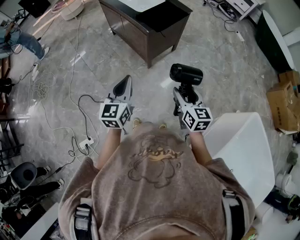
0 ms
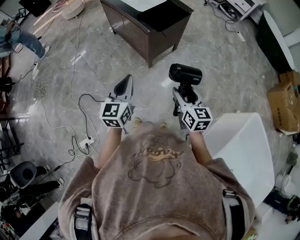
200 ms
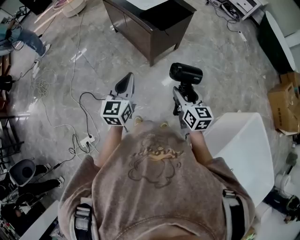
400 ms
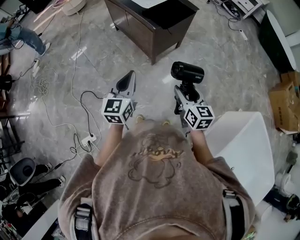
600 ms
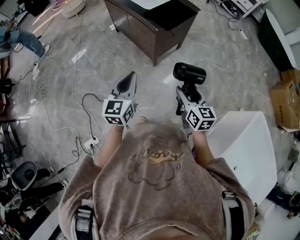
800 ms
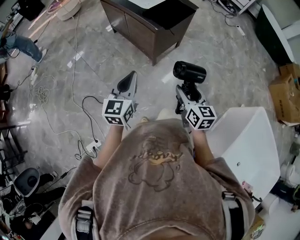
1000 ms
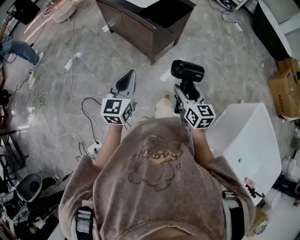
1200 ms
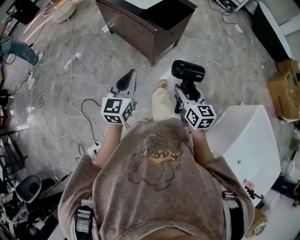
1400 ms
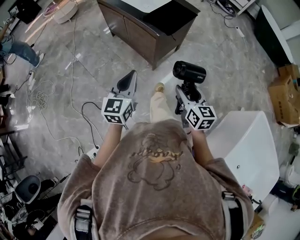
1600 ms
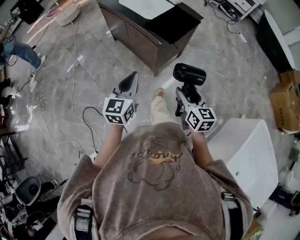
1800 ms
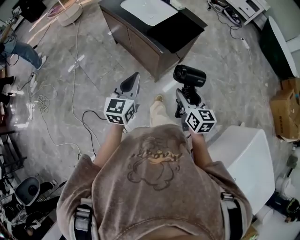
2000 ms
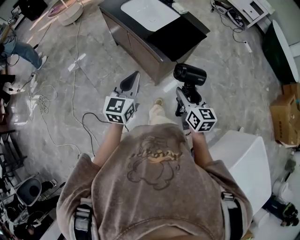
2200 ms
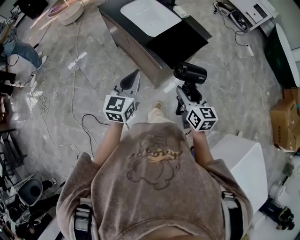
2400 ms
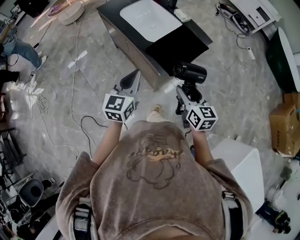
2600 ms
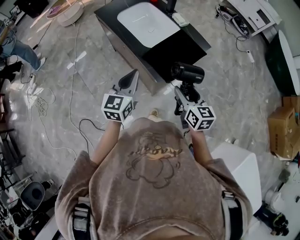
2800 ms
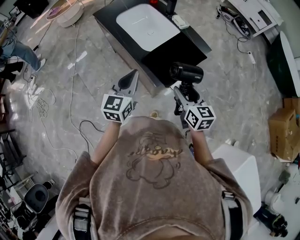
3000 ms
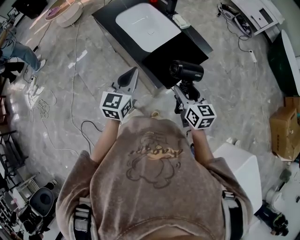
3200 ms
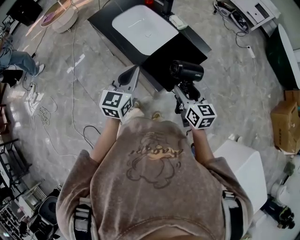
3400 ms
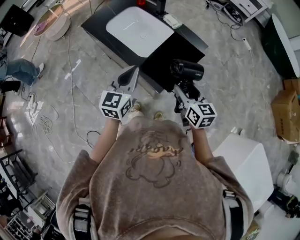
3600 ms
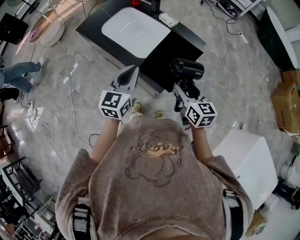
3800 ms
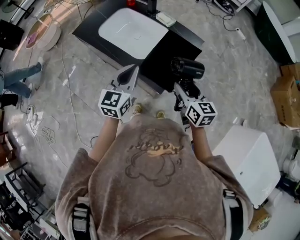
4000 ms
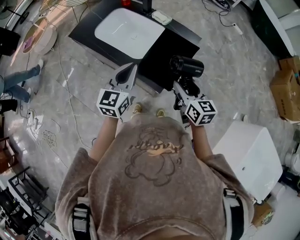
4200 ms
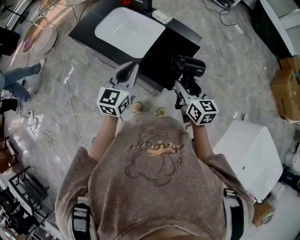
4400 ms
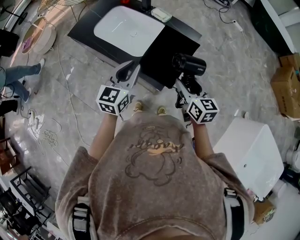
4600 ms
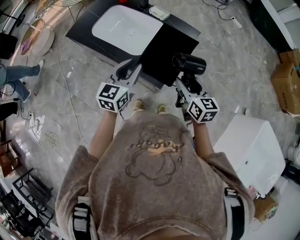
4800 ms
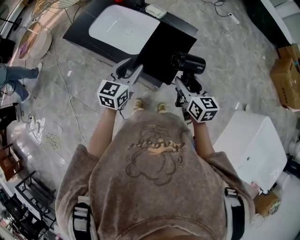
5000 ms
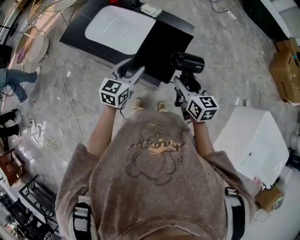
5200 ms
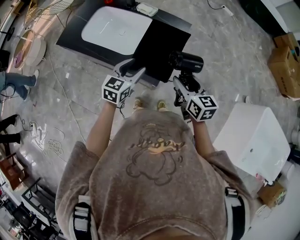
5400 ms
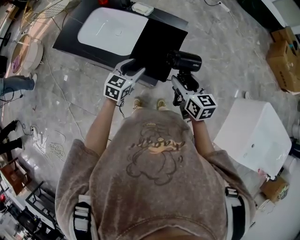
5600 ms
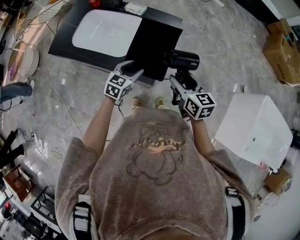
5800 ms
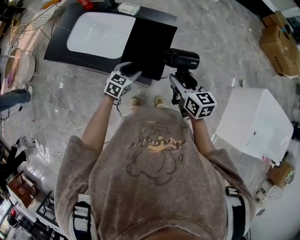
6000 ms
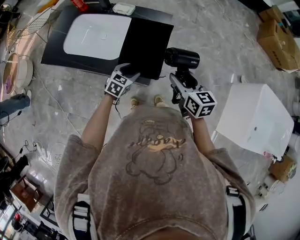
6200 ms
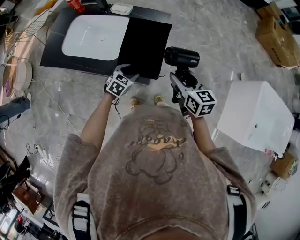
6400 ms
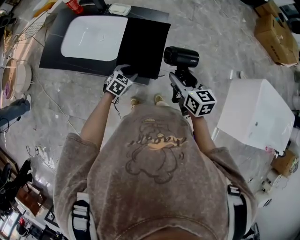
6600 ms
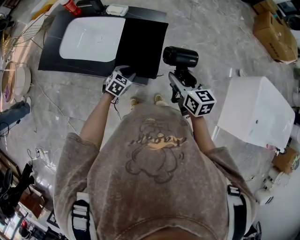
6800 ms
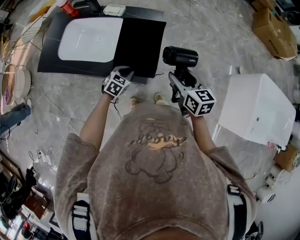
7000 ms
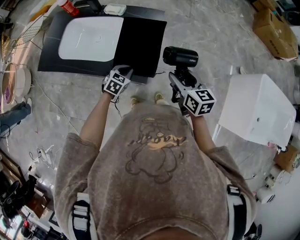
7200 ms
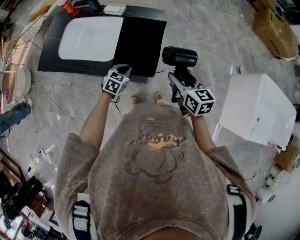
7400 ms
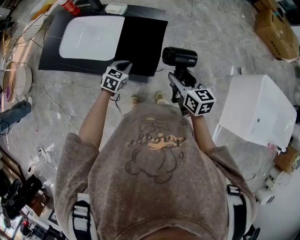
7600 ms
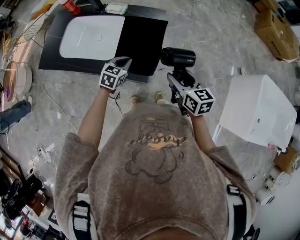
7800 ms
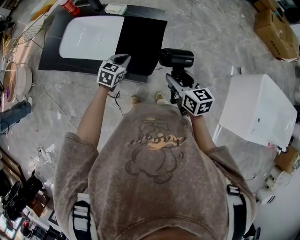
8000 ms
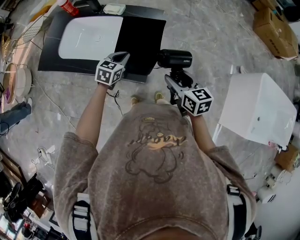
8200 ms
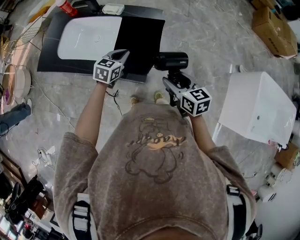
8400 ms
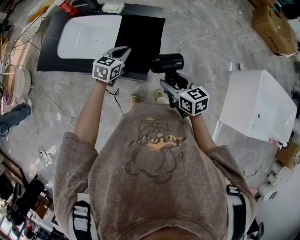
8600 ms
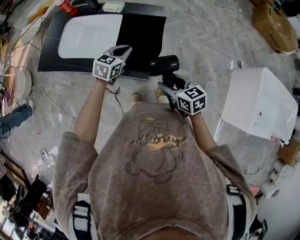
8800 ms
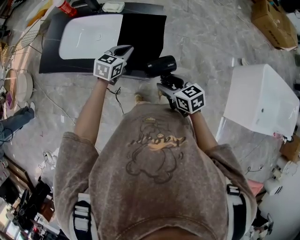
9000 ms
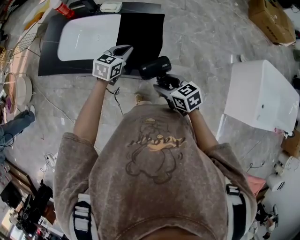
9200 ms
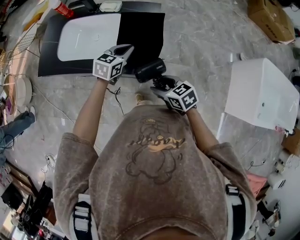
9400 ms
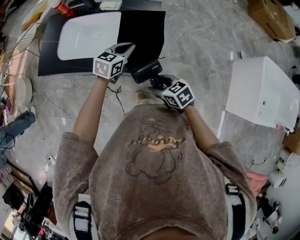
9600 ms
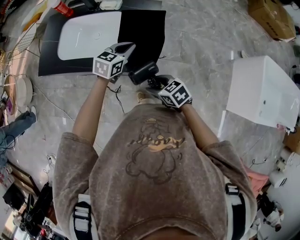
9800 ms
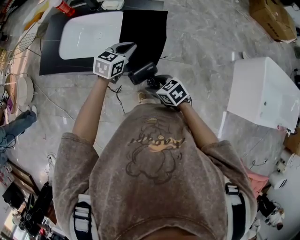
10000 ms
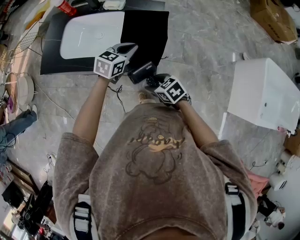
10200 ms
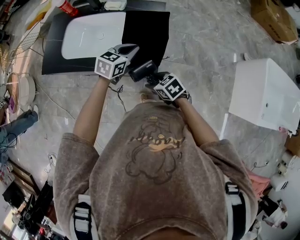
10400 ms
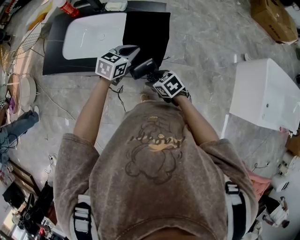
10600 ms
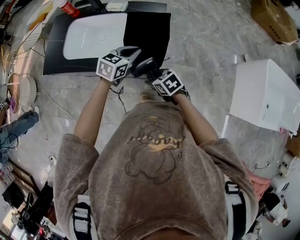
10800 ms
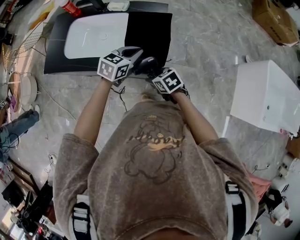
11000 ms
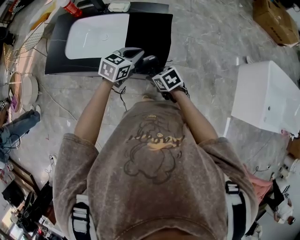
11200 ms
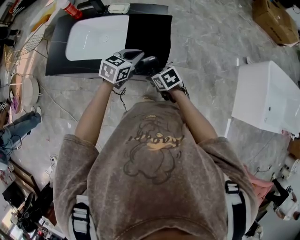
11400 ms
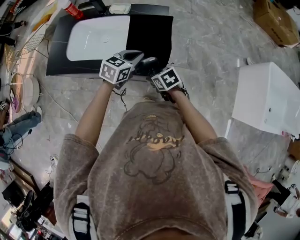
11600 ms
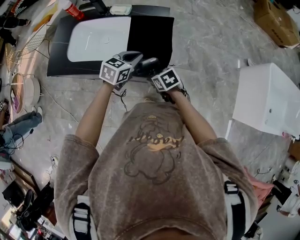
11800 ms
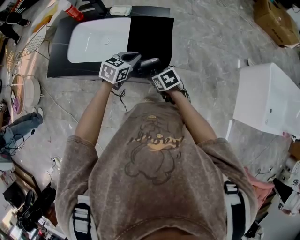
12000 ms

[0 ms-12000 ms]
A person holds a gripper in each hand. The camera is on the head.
0 ms to 1600 ms: The left gripper travels forward and to the left by approximately 15 cm. Meanwhile the right gripper heads to the left and forward, covering some 15 cm.
1600 ms to 3000 ms: Both grippers travel together forward, about 40 cm.
3000 ms to 4400 ms: The left gripper travels forward by some 10 cm. Meanwhile the right gripper heads forward, covering roughly 5 cm.
4400 ms to 6000 ms: The left gripper shifts some 20 cm downward, rotates about 40 degrees, and opens its fingers. The right gripper changes place by approximately 5 cm.
6000 ms to 7600 ms: The left gripper closes.
7600 ms to 9000 ms: The left gripper goes about 10 cm upward. Meanwhile the right gripper travels to the left and backward by approximately 10 cm.
9000 ms to 10400 ms: The right gripper shifts roughly 15 cm to the left and downward.
10400 ms to 12000 ms: The right gripper shifts some 5 cm forward.

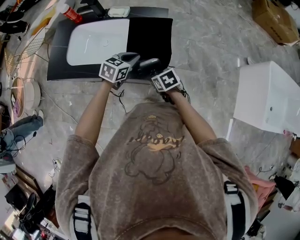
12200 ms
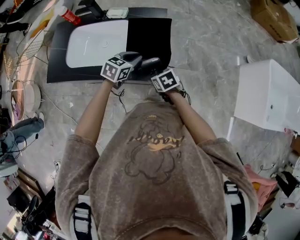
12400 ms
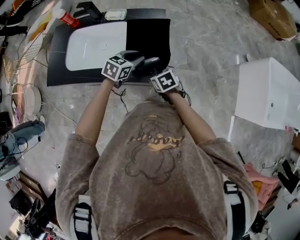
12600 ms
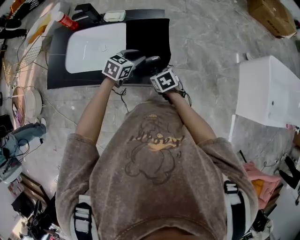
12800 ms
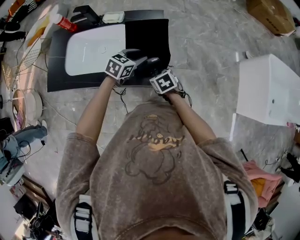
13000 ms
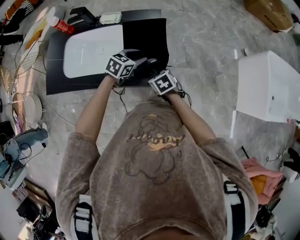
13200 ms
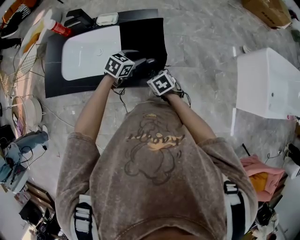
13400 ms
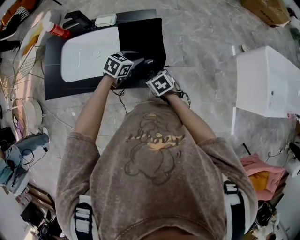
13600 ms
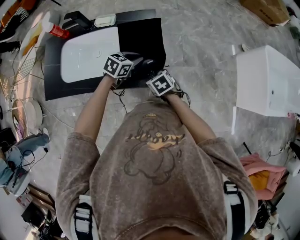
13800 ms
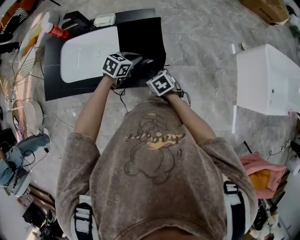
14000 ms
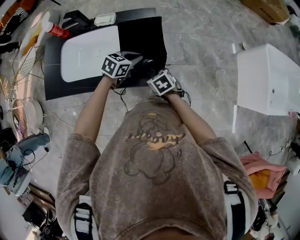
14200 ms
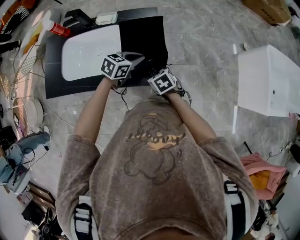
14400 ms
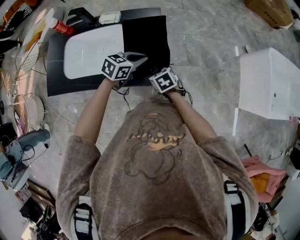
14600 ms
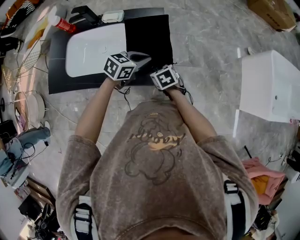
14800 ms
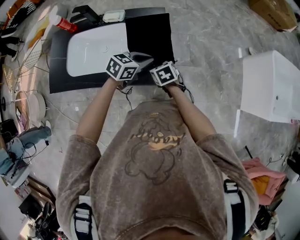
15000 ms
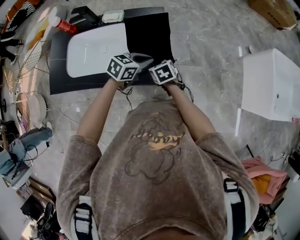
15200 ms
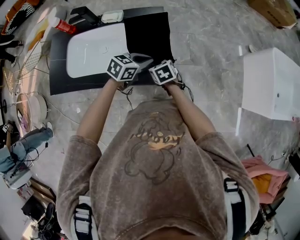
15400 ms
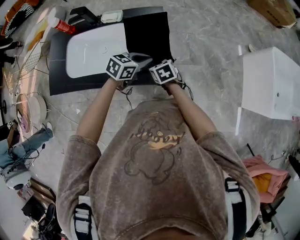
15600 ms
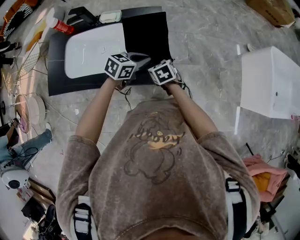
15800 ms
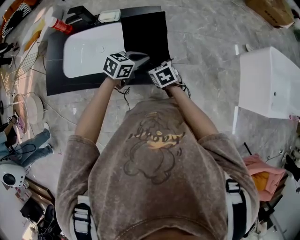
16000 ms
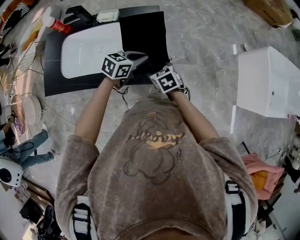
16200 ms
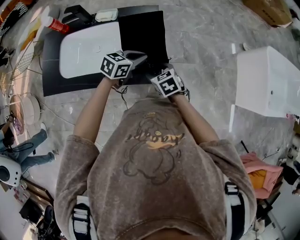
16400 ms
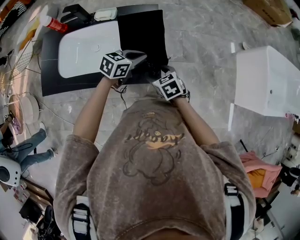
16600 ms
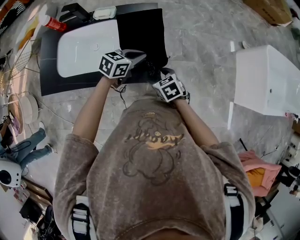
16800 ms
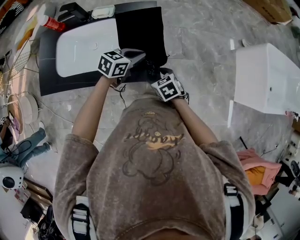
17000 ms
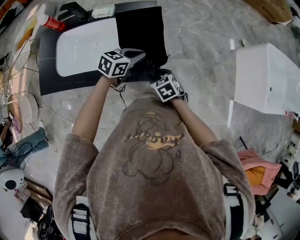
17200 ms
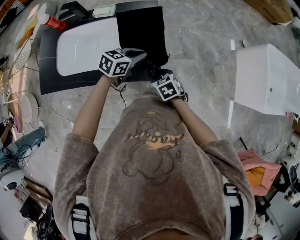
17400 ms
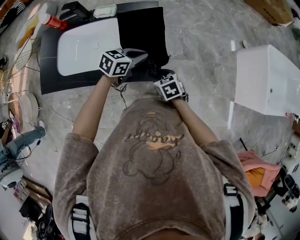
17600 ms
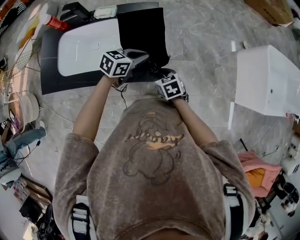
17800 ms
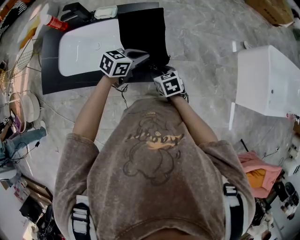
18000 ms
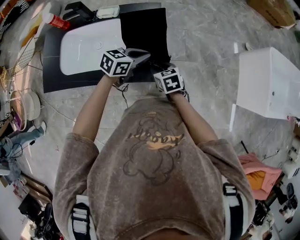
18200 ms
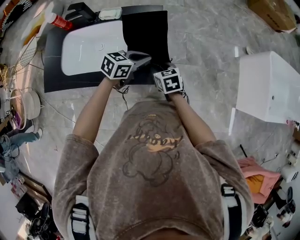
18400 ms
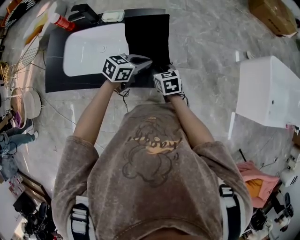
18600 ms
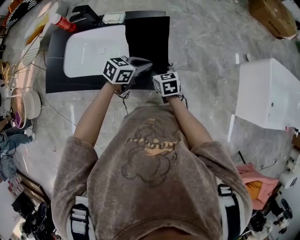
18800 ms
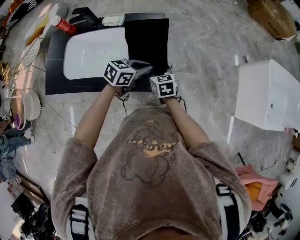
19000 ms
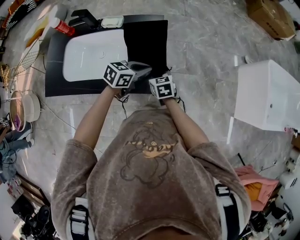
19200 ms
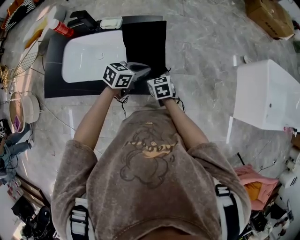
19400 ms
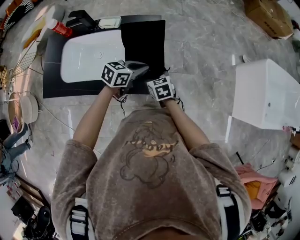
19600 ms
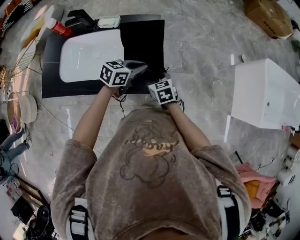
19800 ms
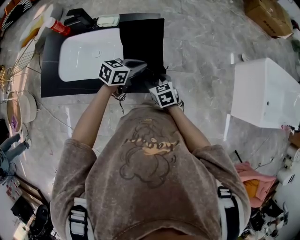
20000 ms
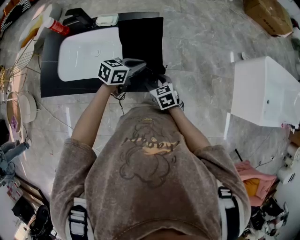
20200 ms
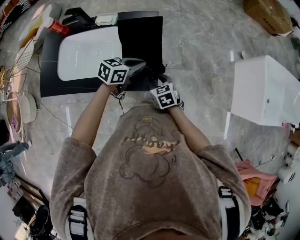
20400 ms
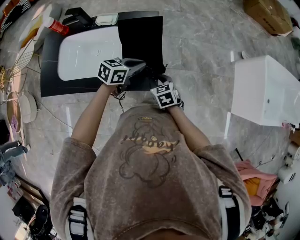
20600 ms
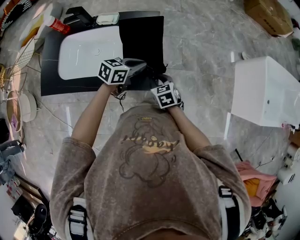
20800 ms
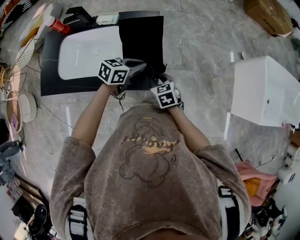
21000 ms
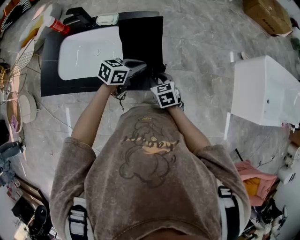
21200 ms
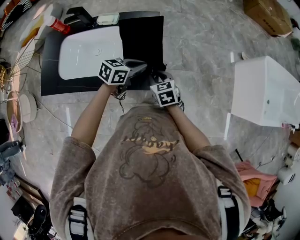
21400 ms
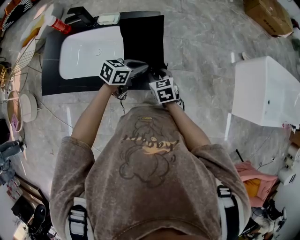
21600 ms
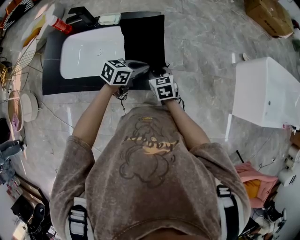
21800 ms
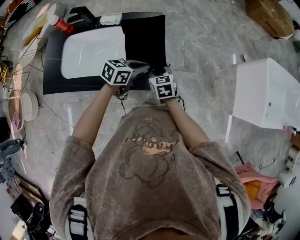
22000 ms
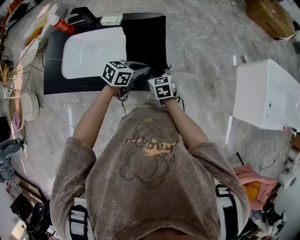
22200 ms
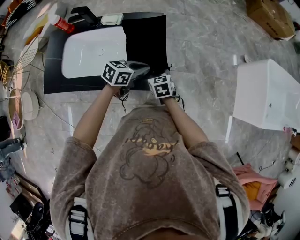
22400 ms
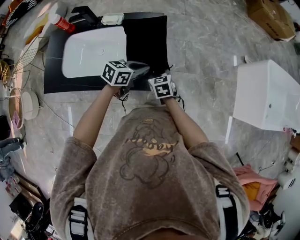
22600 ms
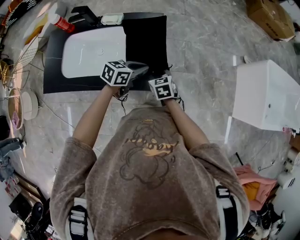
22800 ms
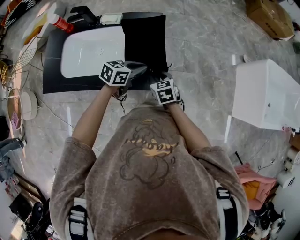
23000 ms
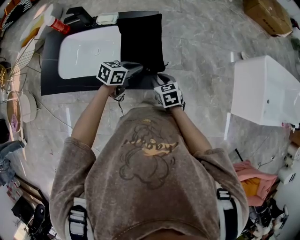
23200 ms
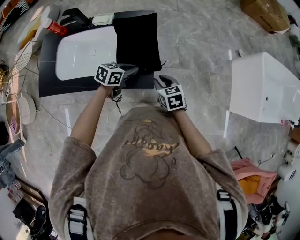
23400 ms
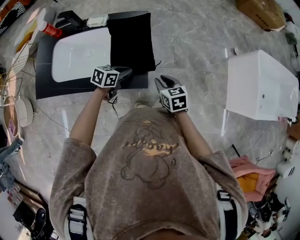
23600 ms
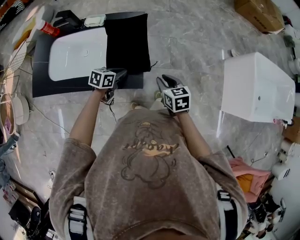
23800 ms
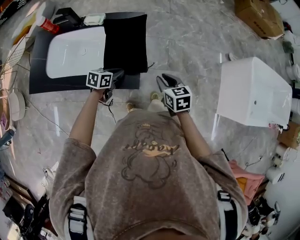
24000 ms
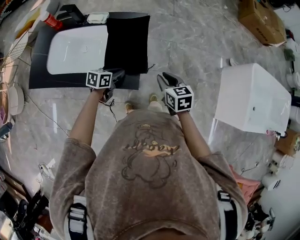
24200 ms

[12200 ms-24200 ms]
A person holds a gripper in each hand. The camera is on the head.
12200 ms to 13800 ms: The left gripper changes place by some 5 cm, and opens, then closes once more.
13800 ms to 15200 ms: The left gripper shifts by about 5 cm. Meanwhile the right gripper moves forward, approximately 5 cm.
15200 ms to 16600 ms: The right gripper ends up about 5 cm from where it was.
16600 ms to 18200 ms: The right gripper closes up.
18200 ms to 19800 ms: There are only small adjustments of the grippers.
19800 ms to 21200 ms: The right gripper closes up.
21200 ms to 22600 ms: The grippers make only small movements.
22600 ms to 24200 ms: The right gripper heads to the right and upward, covering approximately 20 cm, while the left gripper is displaced downward by about 5 cm, and rotates about 20 degrees.
